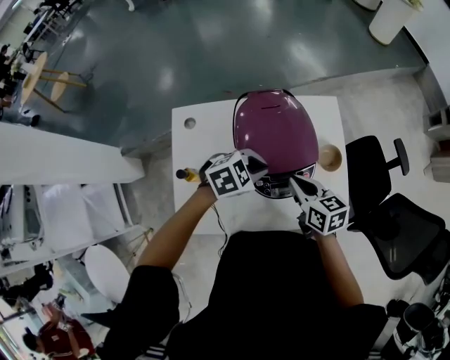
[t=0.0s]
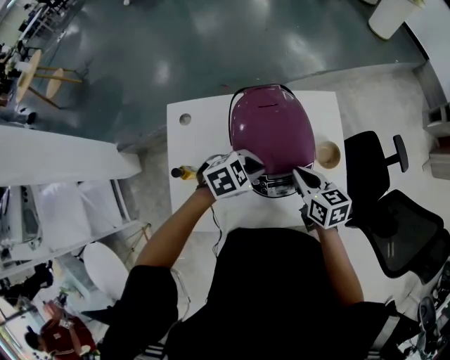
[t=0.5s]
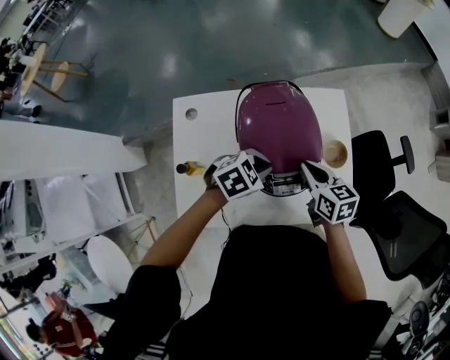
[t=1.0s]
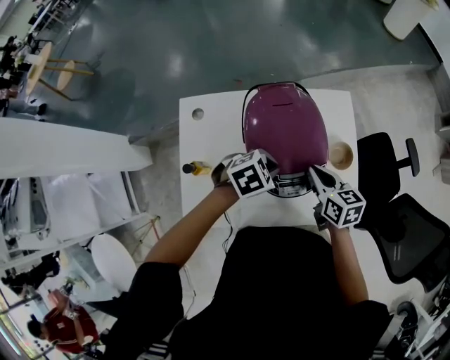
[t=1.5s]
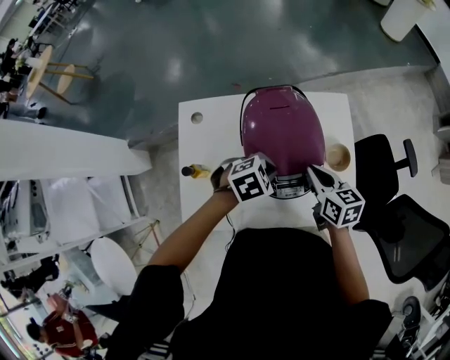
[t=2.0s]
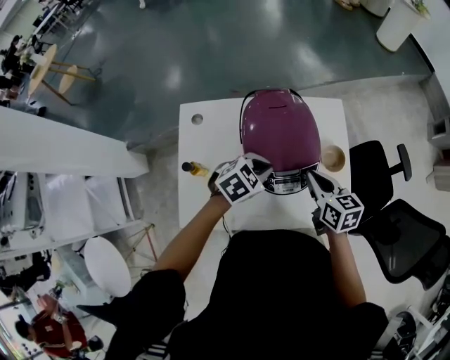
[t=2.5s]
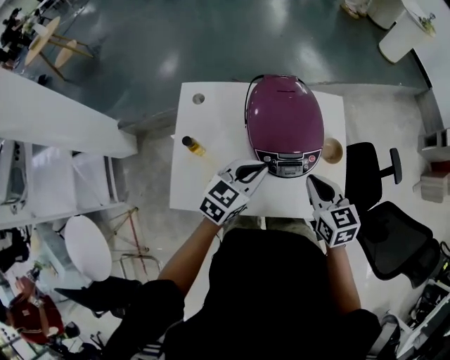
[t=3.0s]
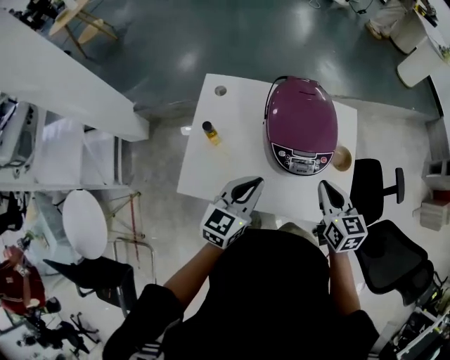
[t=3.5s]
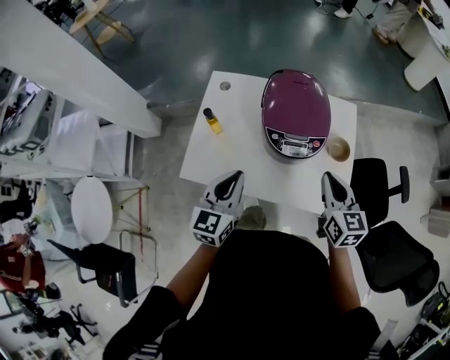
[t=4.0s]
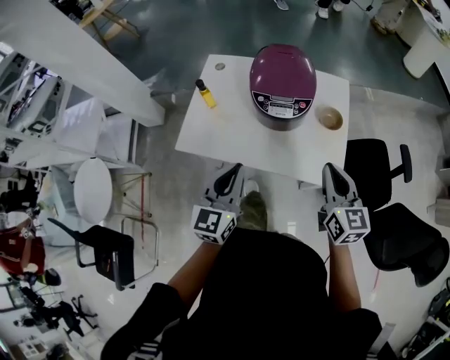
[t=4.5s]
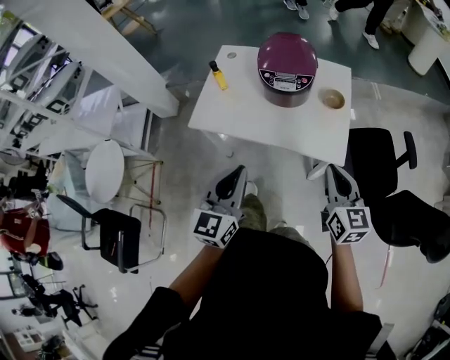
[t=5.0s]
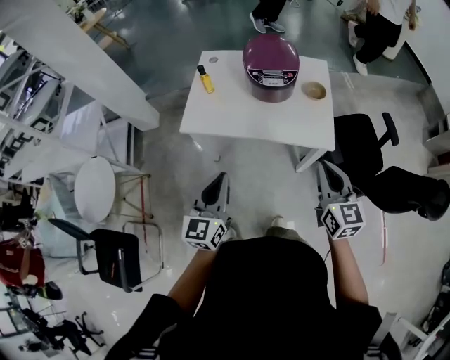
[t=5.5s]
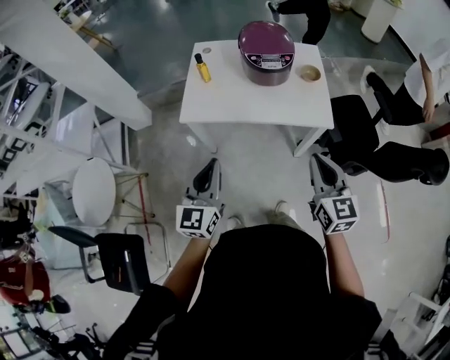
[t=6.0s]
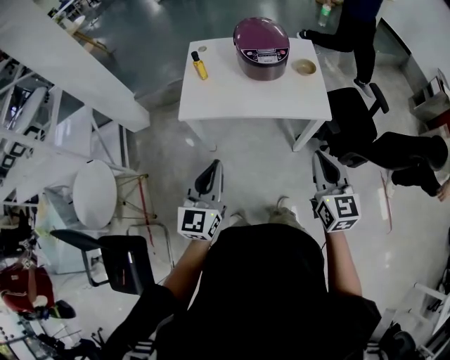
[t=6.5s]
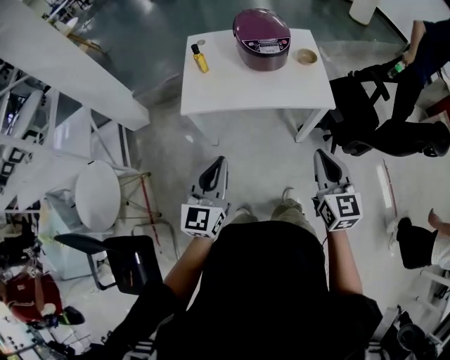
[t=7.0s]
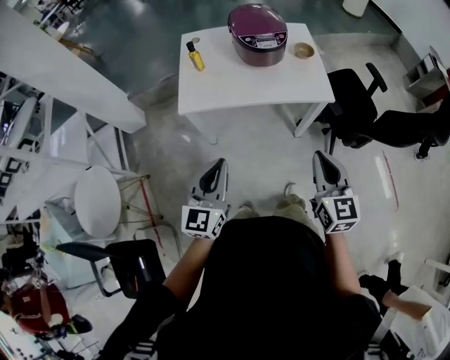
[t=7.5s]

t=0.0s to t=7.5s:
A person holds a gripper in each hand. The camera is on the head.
t=0.0s to t=2.0s: The grippers move only a little.
t=2.0s to t=4.0s: The right gripper changes place by about 15 cm, and turns by roughly 20 degrees, while the left gripper changes place by about 25 cm, and tilts its fingers roughly 40 degrees upward.
t=4.0s to t=5.5s: The two grippers go some 30 cm backward.
t=5.5s to t=7.5s: The right gripper travels backward and to the left by about 15 cm. Meanwhile the left gripper heads to the left and backward, covering some 10 cm.

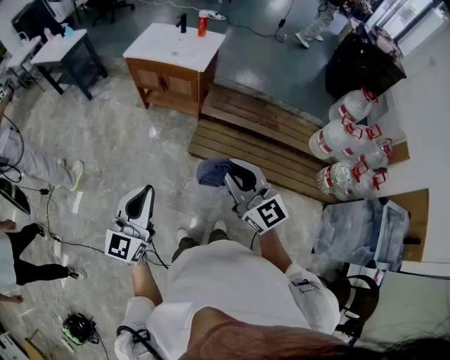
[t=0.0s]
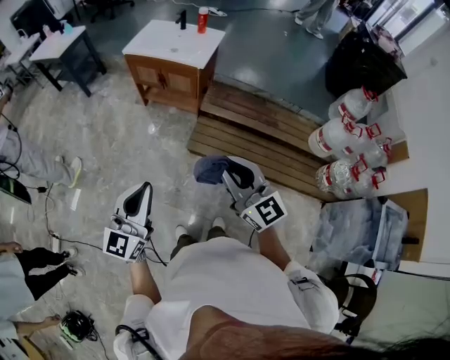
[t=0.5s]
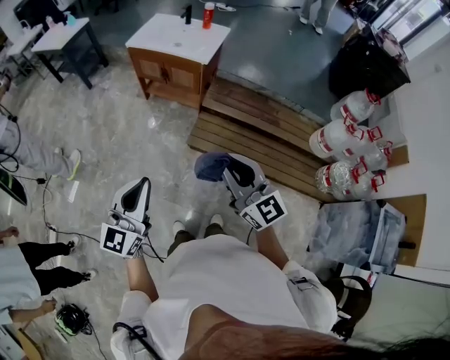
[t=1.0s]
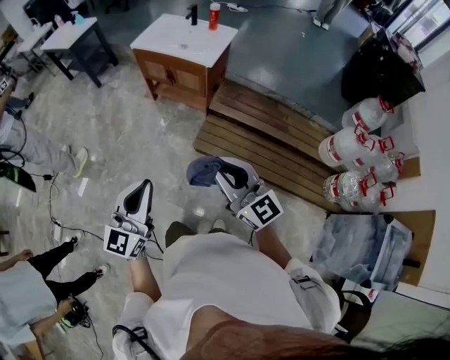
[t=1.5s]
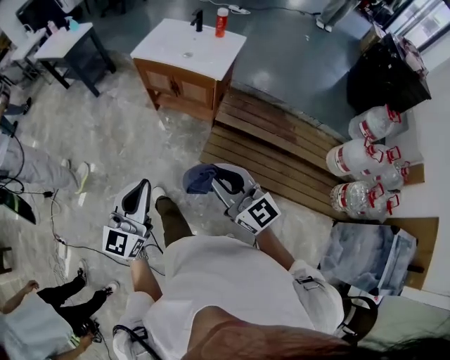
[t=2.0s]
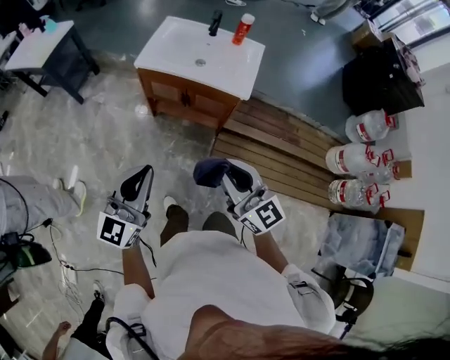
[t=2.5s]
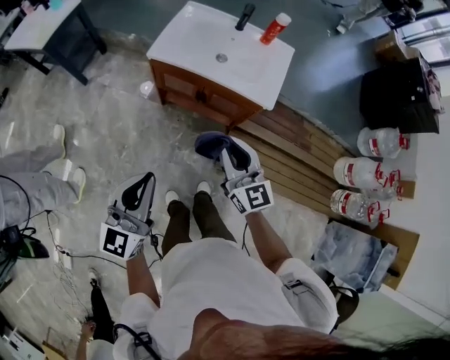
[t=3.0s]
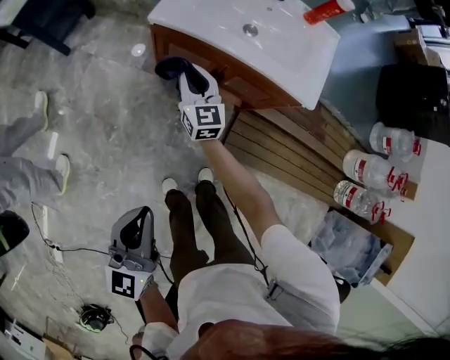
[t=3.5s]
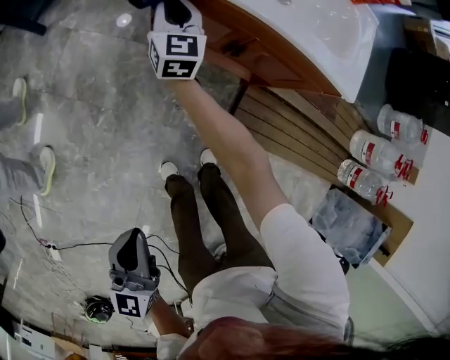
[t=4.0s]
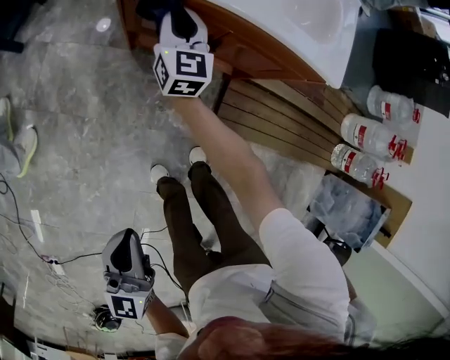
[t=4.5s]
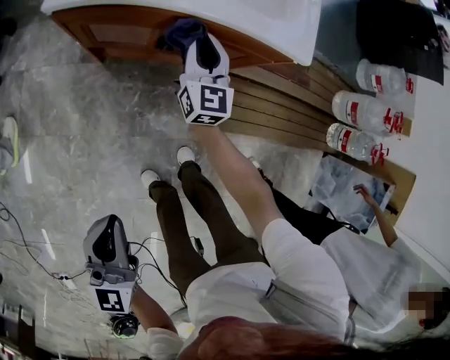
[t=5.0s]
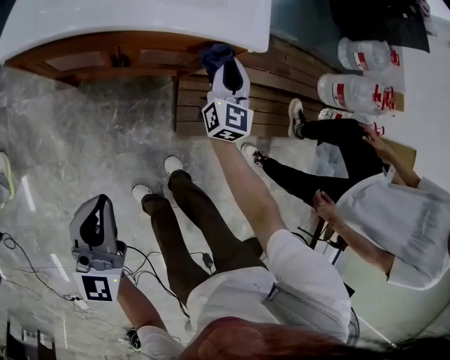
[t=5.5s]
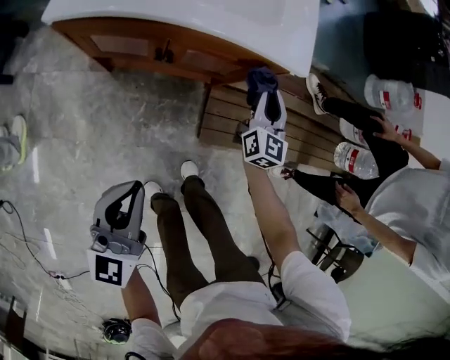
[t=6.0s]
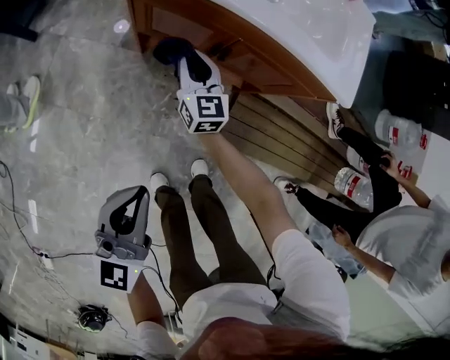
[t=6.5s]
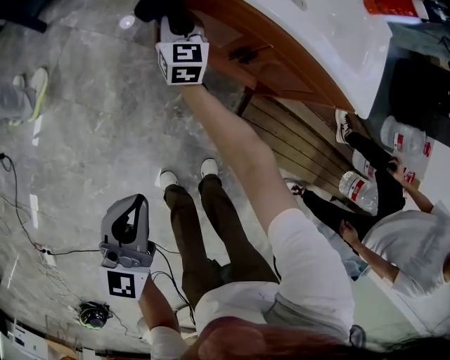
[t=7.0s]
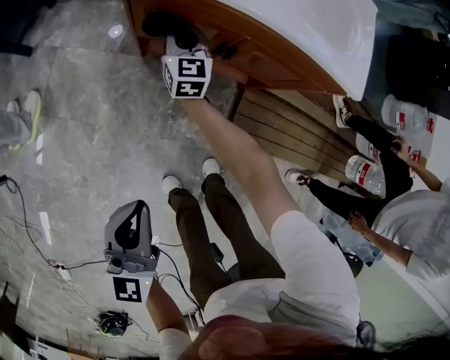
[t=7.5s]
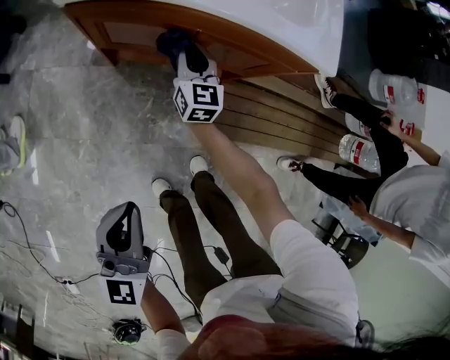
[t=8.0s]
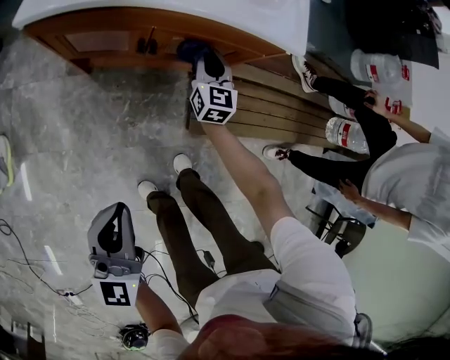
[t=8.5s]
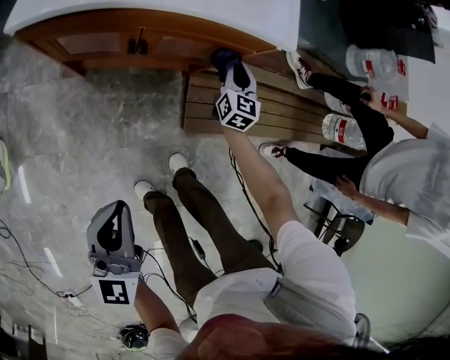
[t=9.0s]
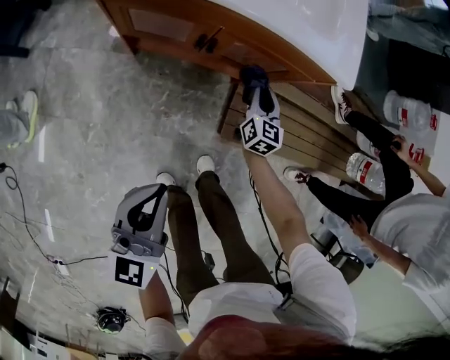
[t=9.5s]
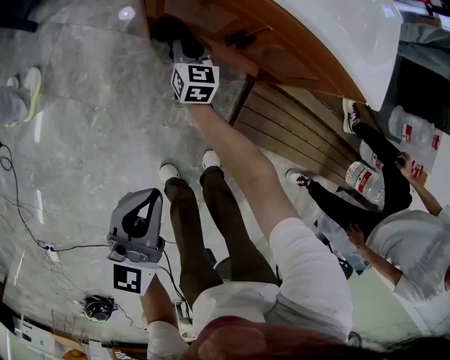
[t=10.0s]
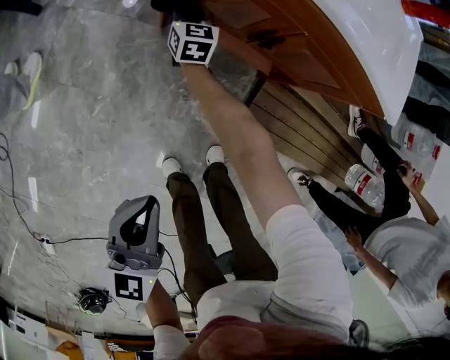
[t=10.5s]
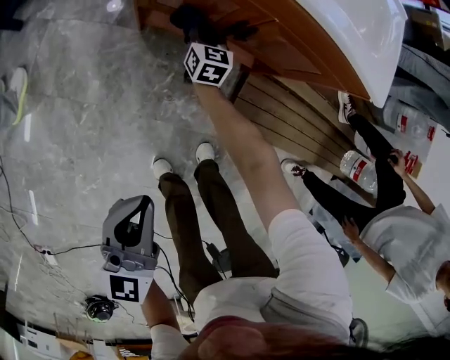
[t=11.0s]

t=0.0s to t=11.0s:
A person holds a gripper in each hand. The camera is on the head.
t=0.0s to t=2.0s: The two grippers go approximately 15 cm forward.
t=2.0s to t=3.5s: Both grippers are carried forward and to the left, approximately 60 cm. The right gripper goes some 35 cm downward, and turns by some 30 degrees. The left gripper heads downward, covering roughly 20 cm.
t=3.5s to t=5.5s: The left gripper moves approximately 20 cm, and changes its angle by about 20 degrees. The right gripper ends up about 40 cm from where it was, and changes its angle by some 40 degrees.
t=5.5s to t=7.5s: The right gripper ends up some 40 cm from where it was, and swivels some 30 degrees. Meanwhile the left gripper shifts by about 15 cm.
t=7.5s to t=9.0s: The left gripper shifts some 10 cm to the right. Meanwhile the right gripper shifts approximately 40 cm to the right, and turns by about 30 degrees.
t=9.0s to t=11.0s: The left gripper heads to the left and downward, covering roughly 10 cm; the right gripper shifts about 35 cm to the left, and rotates some 30 degrees.

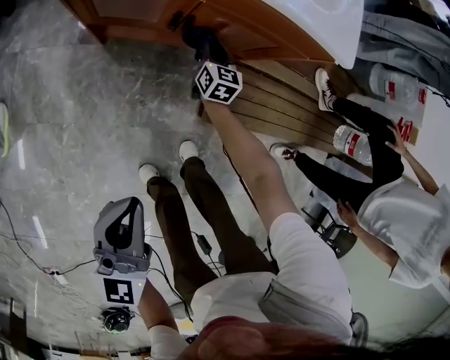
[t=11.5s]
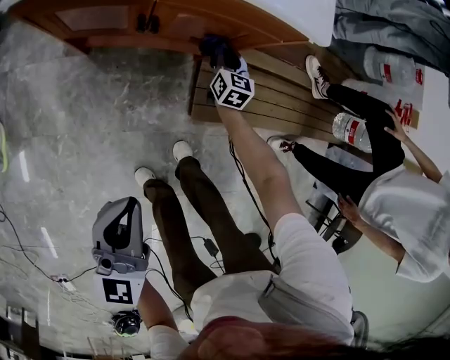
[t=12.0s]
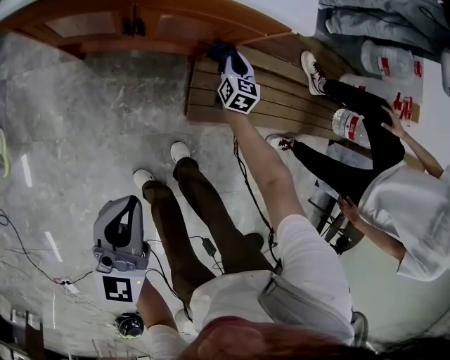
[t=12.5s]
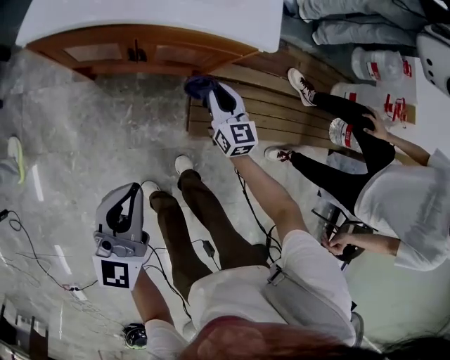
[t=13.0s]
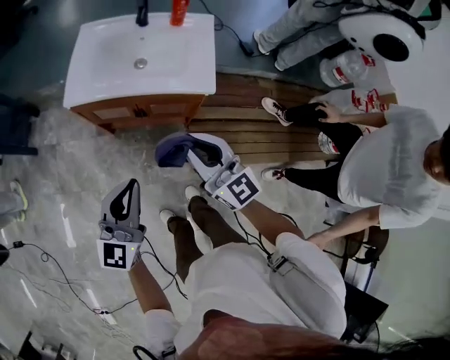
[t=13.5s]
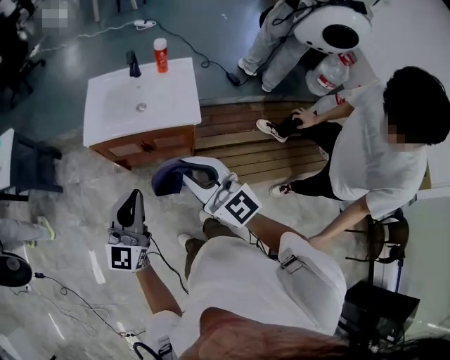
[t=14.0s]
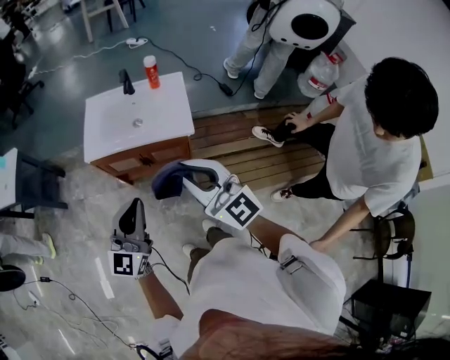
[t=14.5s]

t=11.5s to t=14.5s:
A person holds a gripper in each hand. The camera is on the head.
t=11.5s to t=13.0s: The left gripper moves upward and to the right, roughly 15 cm, while the right gripper travels upward, to the right and backward by approximately 25 cm.
t=13.0s to t=14.5s: The left gripper travels upward by about 35 cm. The right gripper travels upward by about 60 cm, and changes its angle by roughly 40 degrees.

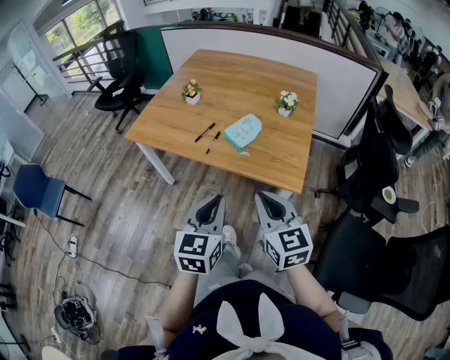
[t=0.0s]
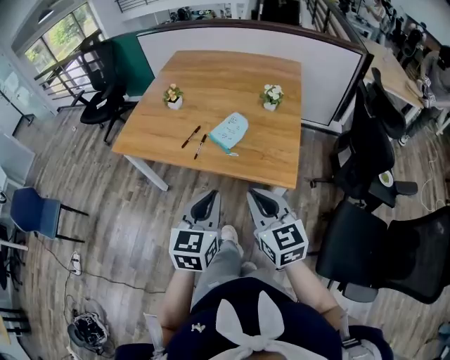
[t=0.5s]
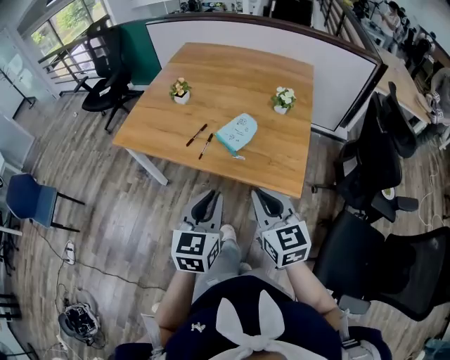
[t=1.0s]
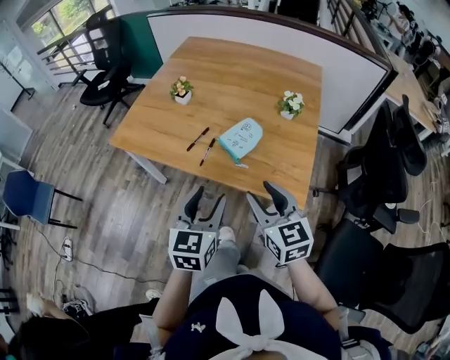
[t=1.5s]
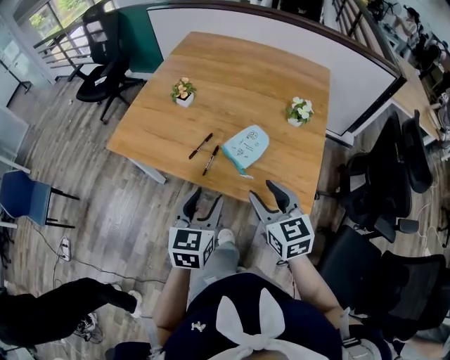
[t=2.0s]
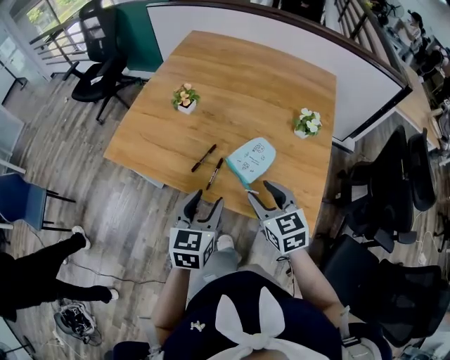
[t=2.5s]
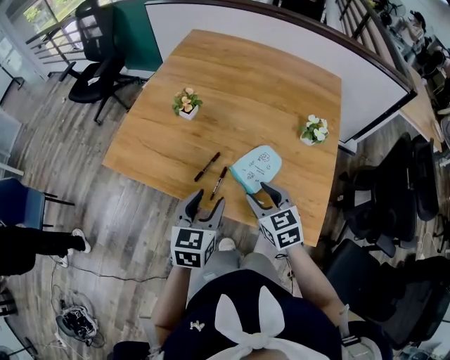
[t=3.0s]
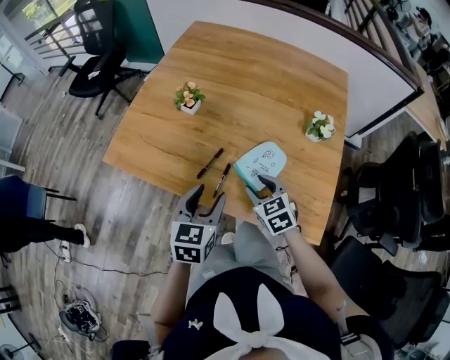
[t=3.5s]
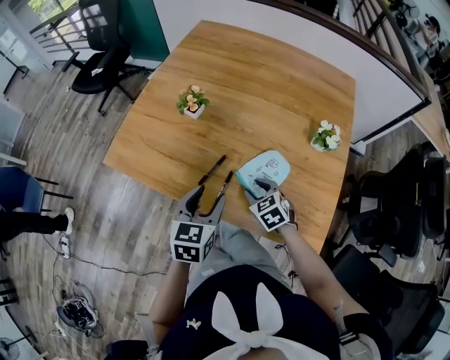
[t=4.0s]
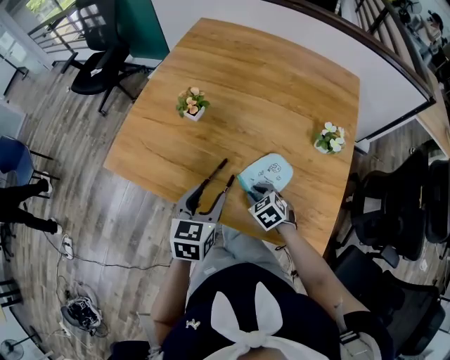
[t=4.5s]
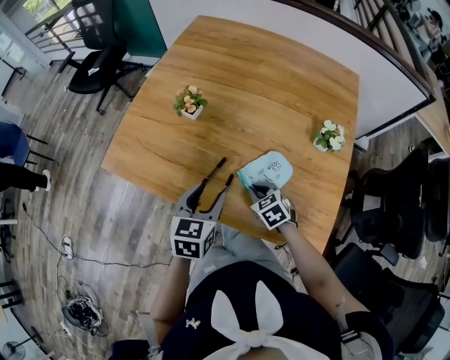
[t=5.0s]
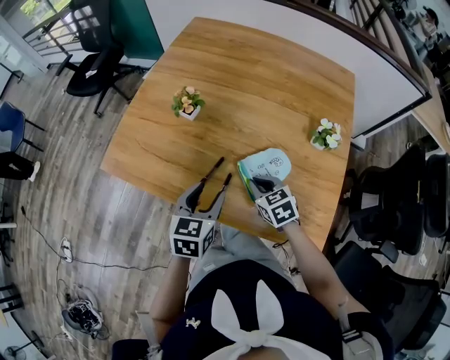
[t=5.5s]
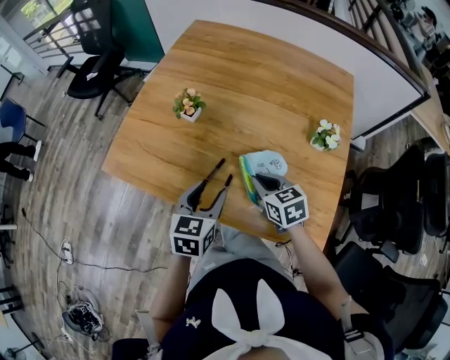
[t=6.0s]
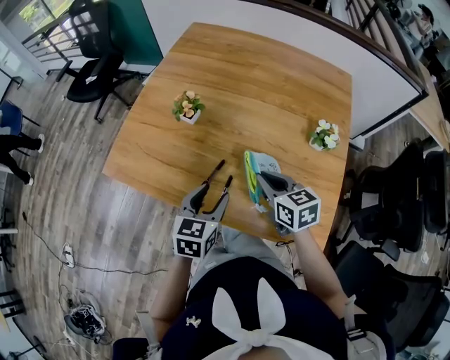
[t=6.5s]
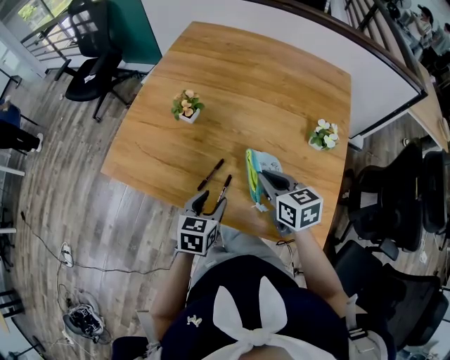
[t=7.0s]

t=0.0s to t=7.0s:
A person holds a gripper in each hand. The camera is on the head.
t=0.0s to t=2.0s: Both grippers move forward, about 20 cm. The left gripper opens. Meanwhile the right gripper opens up.
t=2.0s to t=3.5s: The right gripper heads forward and downward, covering approximately 20 cm, and rotates about 20 degrees; the left gripper moves forward, approximately 15 cm.
t=3.5s to t=5.0s: The left gripper shifts approximately 5 cm forward. The right gripper travels downward by some 10 cm, and closes up.
t=5.0s to t=7.0s: The left gripper heads downward, covering roughly 5 cm, while the right gripper goes approximately 15 cm upward, and turns by some 30 degrees.
